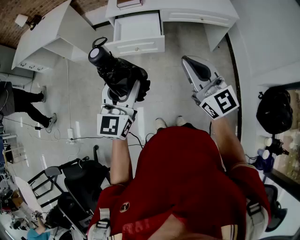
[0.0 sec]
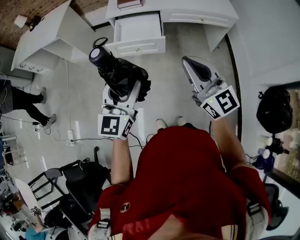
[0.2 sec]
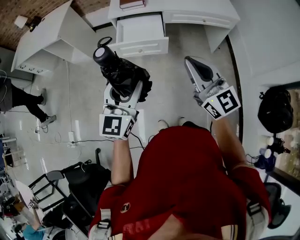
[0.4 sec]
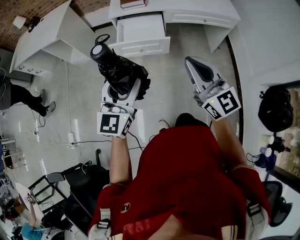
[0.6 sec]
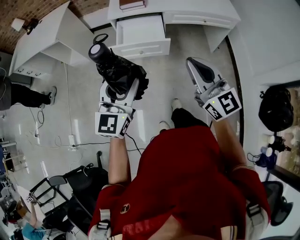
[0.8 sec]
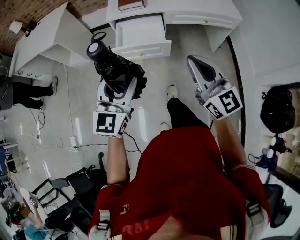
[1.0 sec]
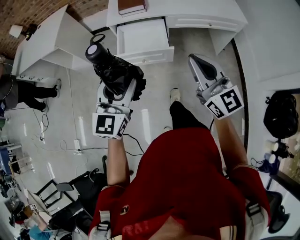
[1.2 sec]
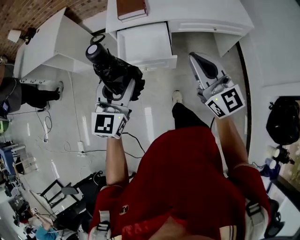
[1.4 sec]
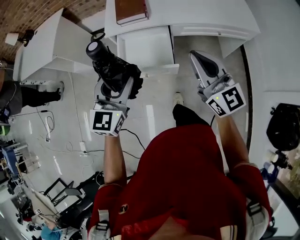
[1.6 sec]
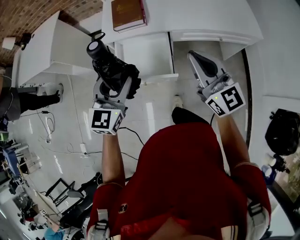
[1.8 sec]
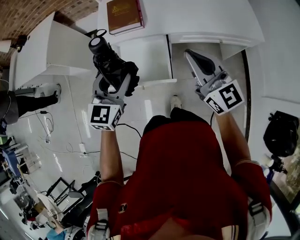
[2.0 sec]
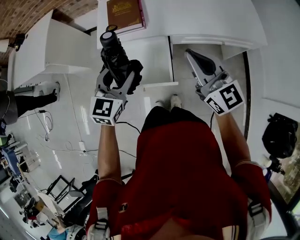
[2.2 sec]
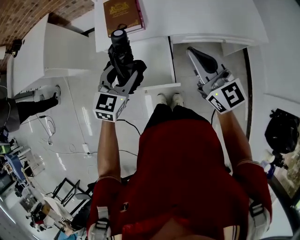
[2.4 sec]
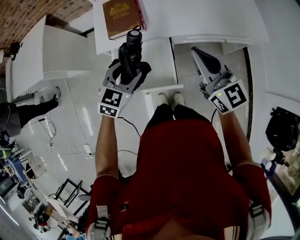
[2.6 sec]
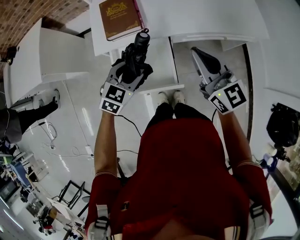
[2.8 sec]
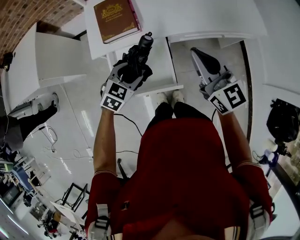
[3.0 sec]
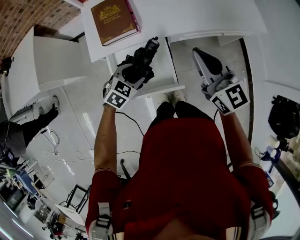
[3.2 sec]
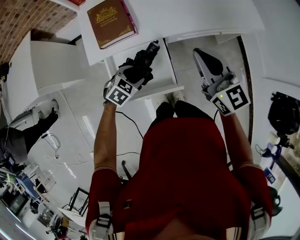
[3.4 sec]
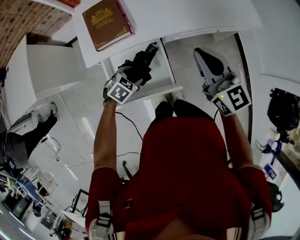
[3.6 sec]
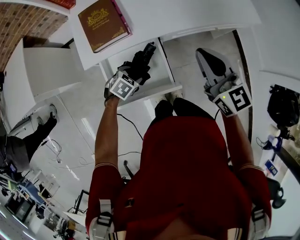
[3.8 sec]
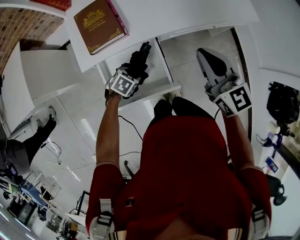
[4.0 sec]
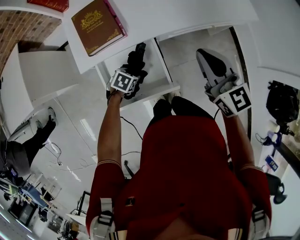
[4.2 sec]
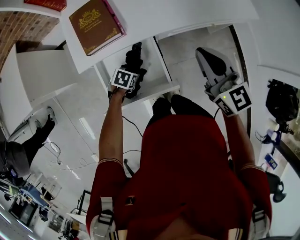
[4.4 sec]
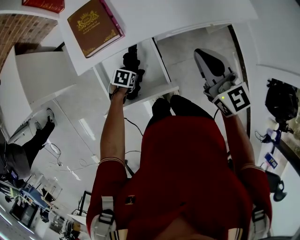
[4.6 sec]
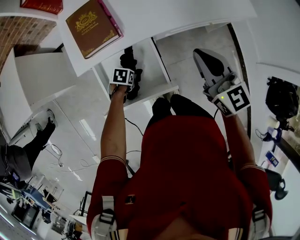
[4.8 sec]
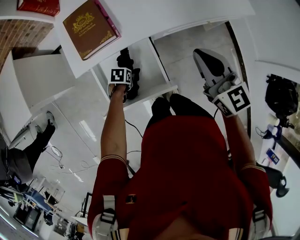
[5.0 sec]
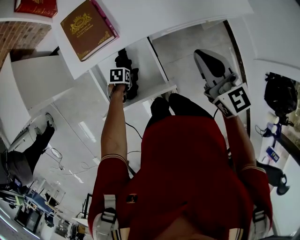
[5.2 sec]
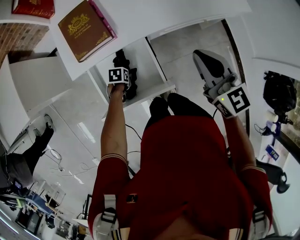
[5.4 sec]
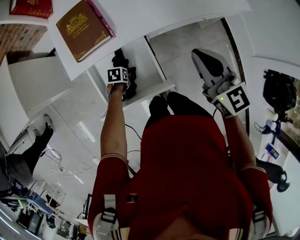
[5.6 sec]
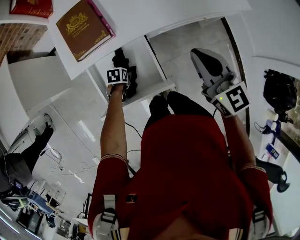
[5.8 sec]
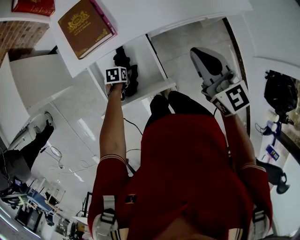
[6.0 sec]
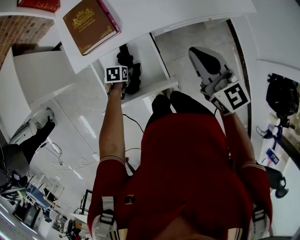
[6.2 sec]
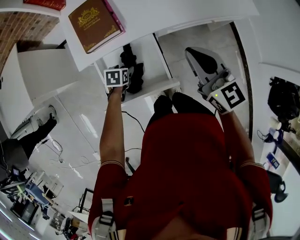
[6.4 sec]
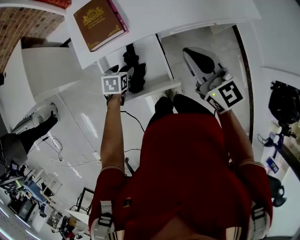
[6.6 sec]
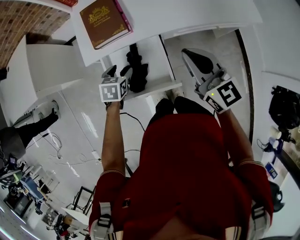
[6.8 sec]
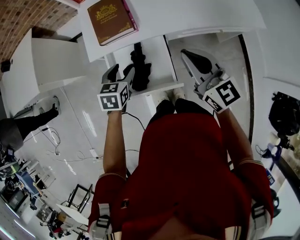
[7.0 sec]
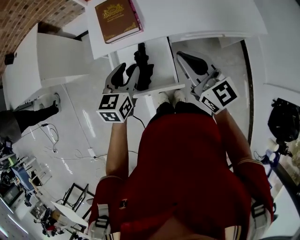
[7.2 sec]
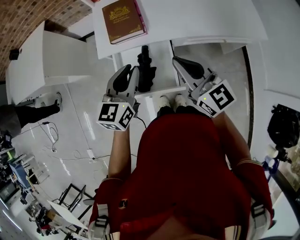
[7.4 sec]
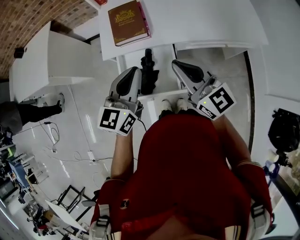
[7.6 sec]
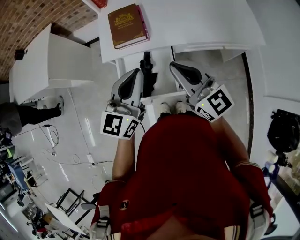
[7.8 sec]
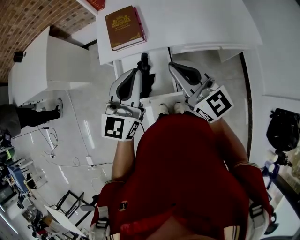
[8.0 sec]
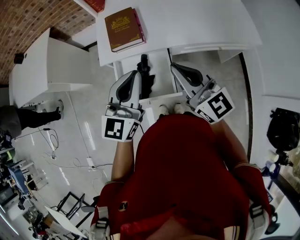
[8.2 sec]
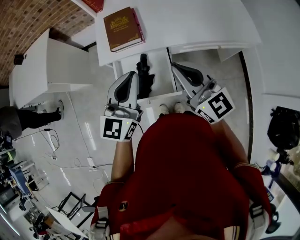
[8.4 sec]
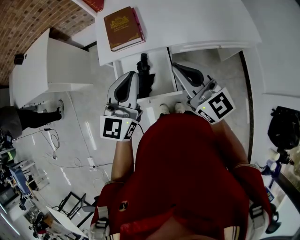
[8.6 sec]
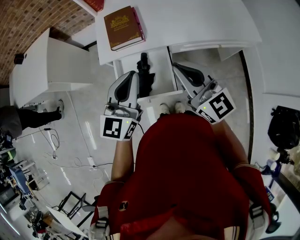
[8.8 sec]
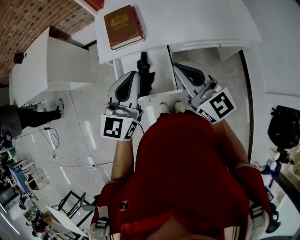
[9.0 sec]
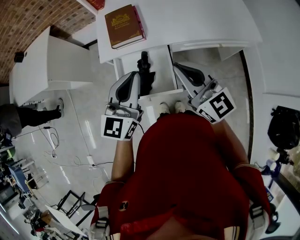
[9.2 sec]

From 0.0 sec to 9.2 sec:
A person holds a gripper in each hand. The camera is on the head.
From 0.0 sec to 1.6 sec: Both grippers move forward, about 30 cm.
From 1.6 sec to 3.0 sec: The left gripper heads downward and forward, covering some 30 cm, and angles its fingers downward, by some 30 degrees; the right gripper shifts some 20 cm forward.
From 3.0 sec to 4.6 sec: The right gripper ends up approximately 5 cm from where it was, while the left gripper goes some 20 cm downward, and rotates some 40 degrees.
From 4.6 sec to 6.2 sec: The grippers move only a little.
From 6.2 sec to 7.6 sec: The left gripper heads upward, covering approximately 40 cm, tips its fingers upward by some 60 degrees, and closes its fingers. The right gripper ends up about 15 cm from where it was, and swivels some 20 degrees.
From 7.6 sec to 9.2 sec: There are only small adjustments of the grippers.

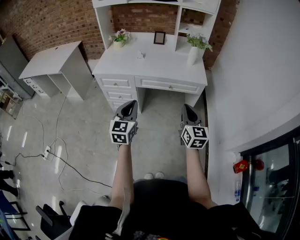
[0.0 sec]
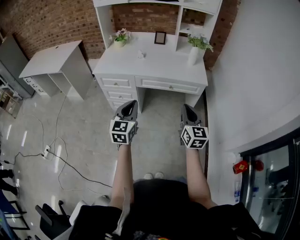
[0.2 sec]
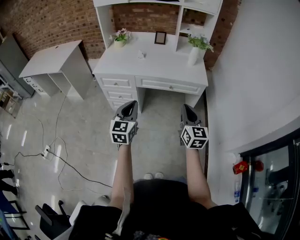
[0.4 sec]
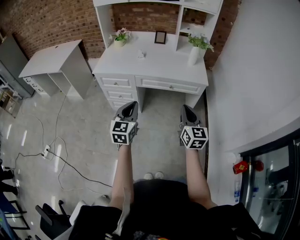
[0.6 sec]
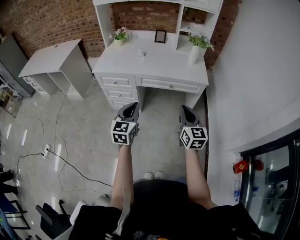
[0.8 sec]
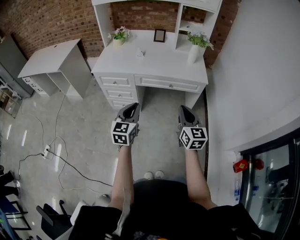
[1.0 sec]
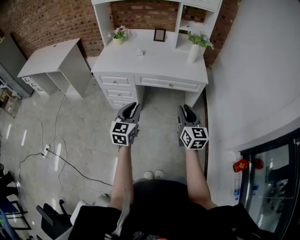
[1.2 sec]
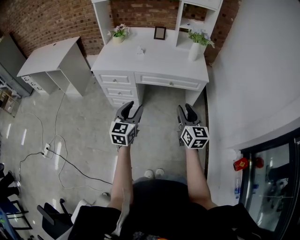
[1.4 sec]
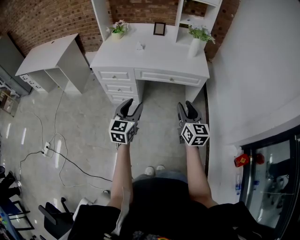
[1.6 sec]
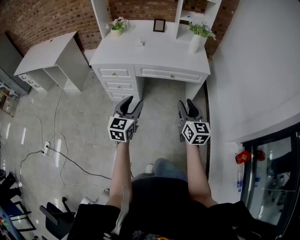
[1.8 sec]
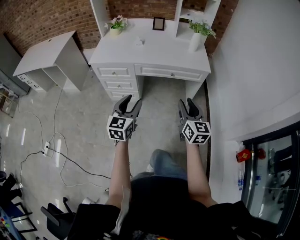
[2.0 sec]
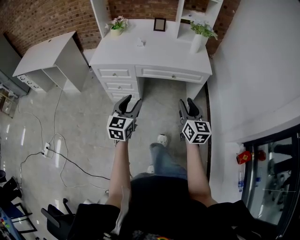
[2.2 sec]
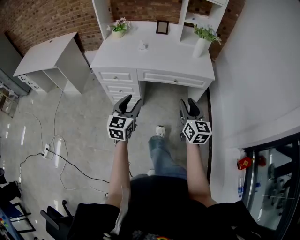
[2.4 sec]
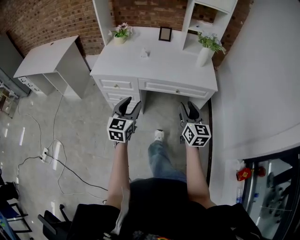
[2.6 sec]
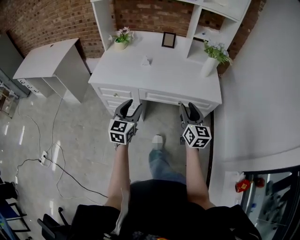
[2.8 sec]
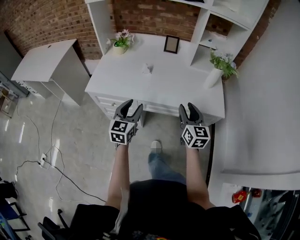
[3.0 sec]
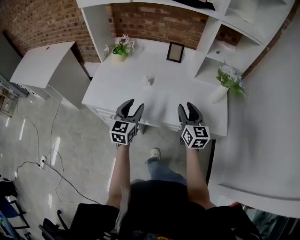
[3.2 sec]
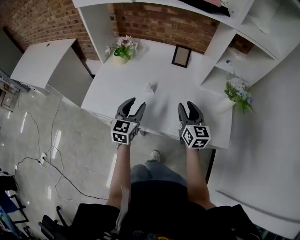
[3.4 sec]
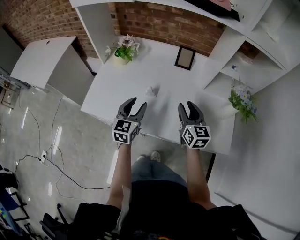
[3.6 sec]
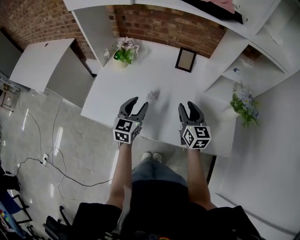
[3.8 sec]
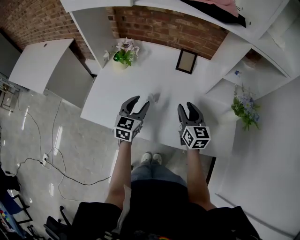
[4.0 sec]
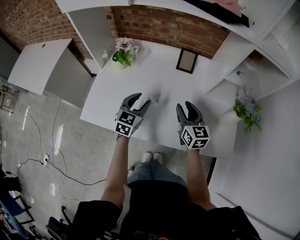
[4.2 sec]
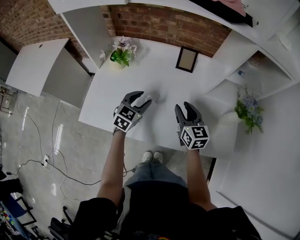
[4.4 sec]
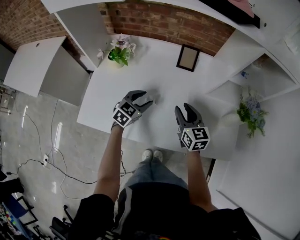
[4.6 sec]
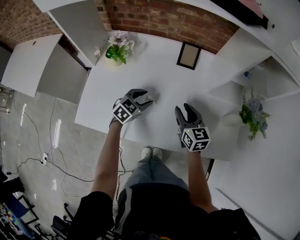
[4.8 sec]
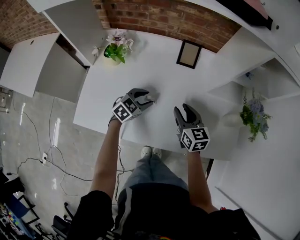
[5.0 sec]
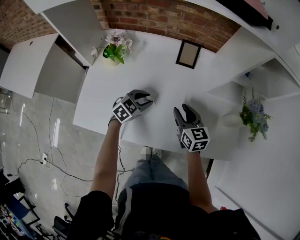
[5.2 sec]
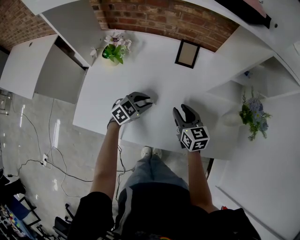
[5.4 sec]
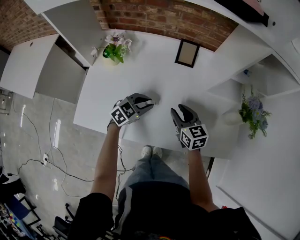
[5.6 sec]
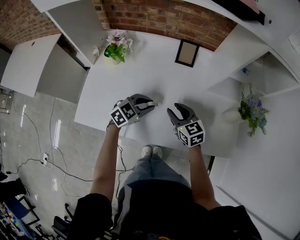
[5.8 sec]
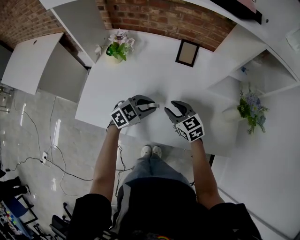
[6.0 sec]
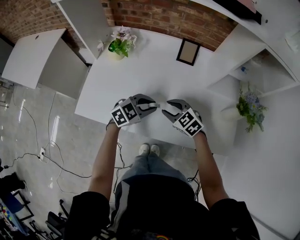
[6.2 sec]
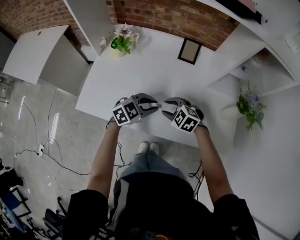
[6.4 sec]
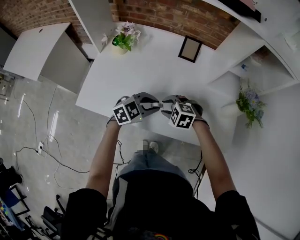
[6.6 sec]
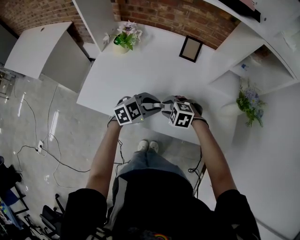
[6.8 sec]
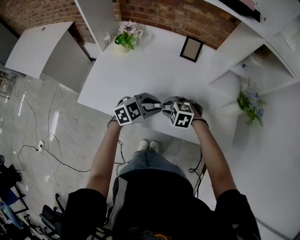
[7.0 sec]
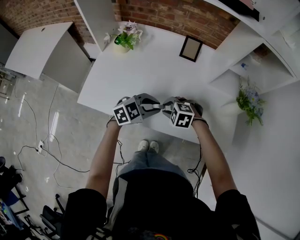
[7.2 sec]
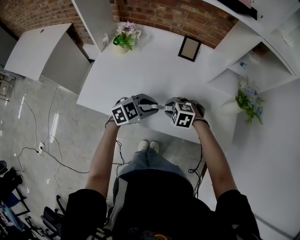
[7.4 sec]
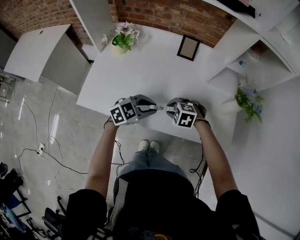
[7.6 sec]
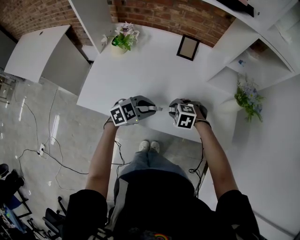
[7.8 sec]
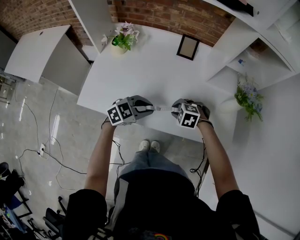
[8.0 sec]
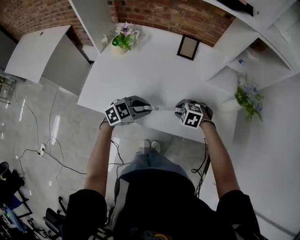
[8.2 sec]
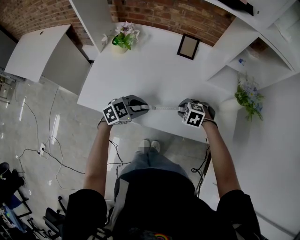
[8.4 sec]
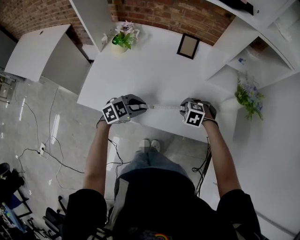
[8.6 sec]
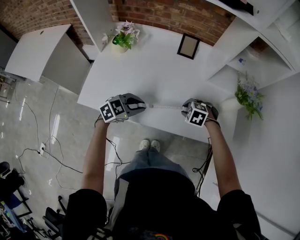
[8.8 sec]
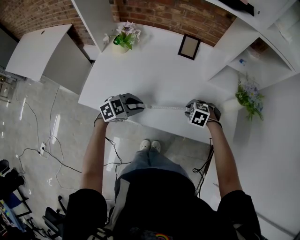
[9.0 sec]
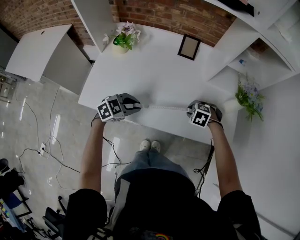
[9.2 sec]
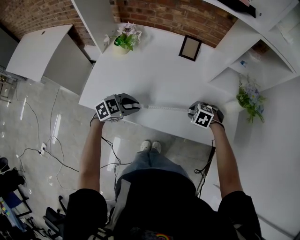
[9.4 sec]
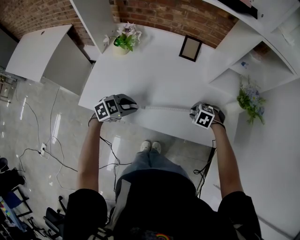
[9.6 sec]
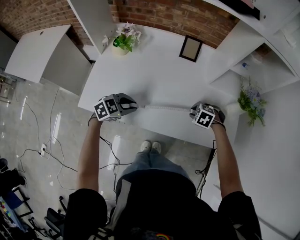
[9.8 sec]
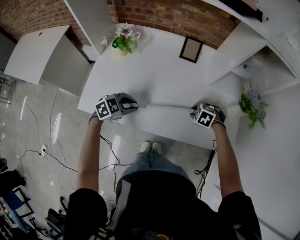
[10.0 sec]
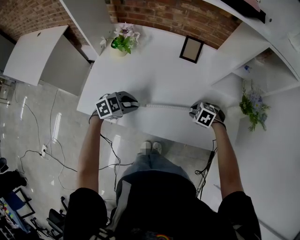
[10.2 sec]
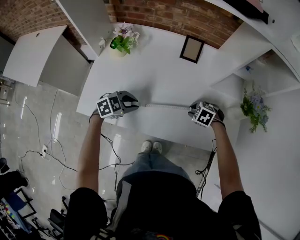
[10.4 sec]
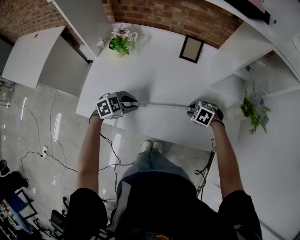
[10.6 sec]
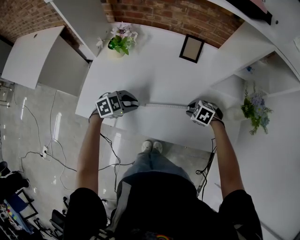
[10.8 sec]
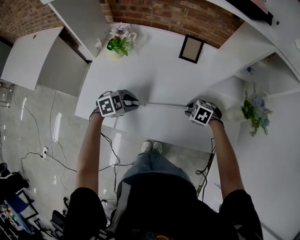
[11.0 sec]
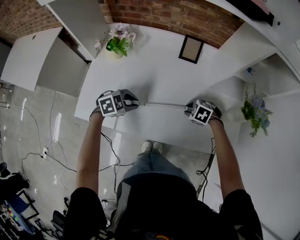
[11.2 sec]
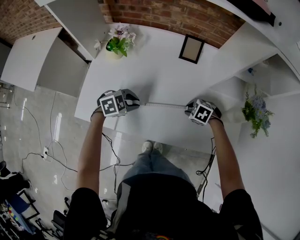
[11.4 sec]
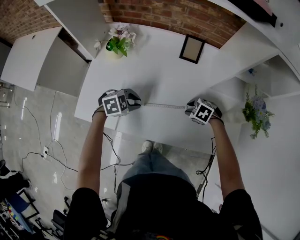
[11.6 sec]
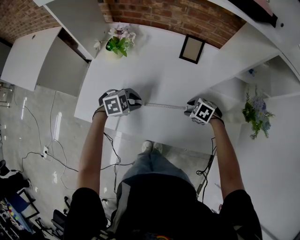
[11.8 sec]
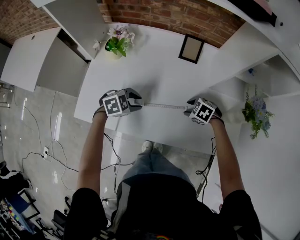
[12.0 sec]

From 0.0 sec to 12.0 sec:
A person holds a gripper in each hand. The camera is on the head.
From 0.0 sec to 1.6 sec: The right gripper opens. Meanwhile the left gripper opens up.
From 1.6 sec to 3.0 sec: Both grippers move forward, some 30 cm.
From 3.0 sec to 4.4 sec: Both grippers travel together forward, some 30 cm. The left gripper turns by approximately 20 degrees.
From 4.4 sec to 6.0 sec: The right gripper shifts some 5 cm downward, and turns by approximately 30 degrees. The left gripper goes about 5 cm to the right, and swivels some 30 degrees.
From 6.0 sec to 7.6 sec: The left gripper ends up approximately 10 cm from where it was. Meanwhile the right gripper ends up about 10 cm from where it was, and tips its fingers downward by roughly 40 degrees.
From 7.6 sec to 9.0 sec: The left gripper moves roughly 5 cm, while the right gripper changes place by roughly 10 cm.
From 9.0 sec to 10.4 sec: The left gripper shifts by approximately 10 cm, while the right gripper moves roughly 5 cm.
From 10.4 sec to 12.0 sec: The right gripper opens up.

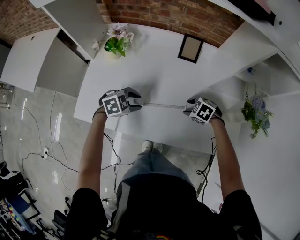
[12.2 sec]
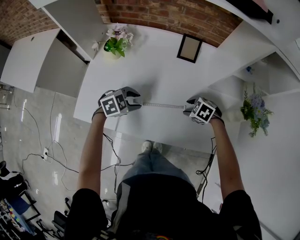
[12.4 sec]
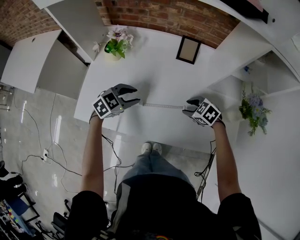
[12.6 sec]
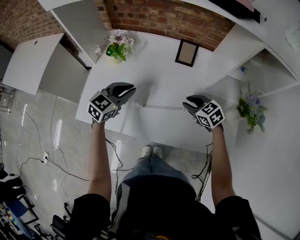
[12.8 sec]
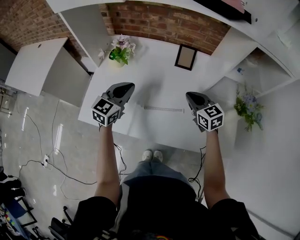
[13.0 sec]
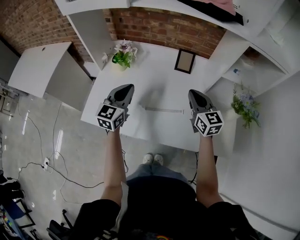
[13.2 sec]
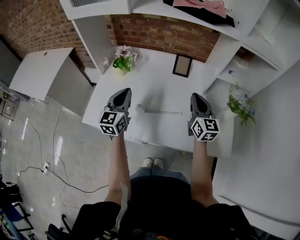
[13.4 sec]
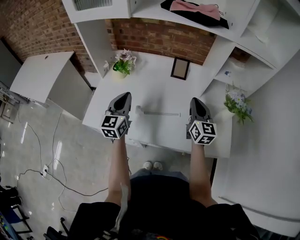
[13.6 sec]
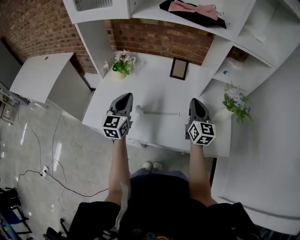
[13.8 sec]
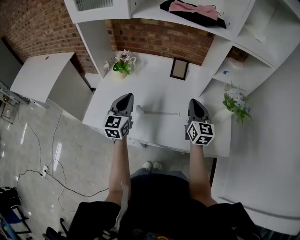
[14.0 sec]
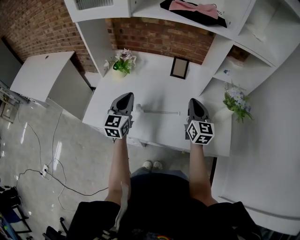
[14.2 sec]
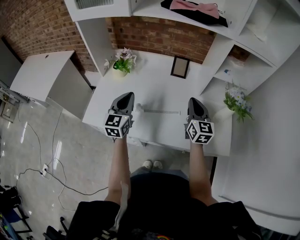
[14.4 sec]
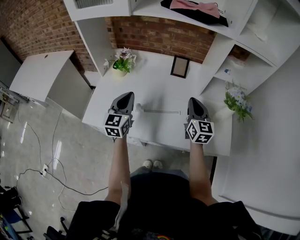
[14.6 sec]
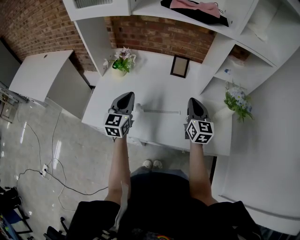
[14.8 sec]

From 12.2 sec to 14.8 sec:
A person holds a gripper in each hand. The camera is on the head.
From 12.2 sec to 13.4 sec: Both grippers move upward, some 25 cm. The right gripper tips its fingers upward by approximately 70 degrees, and closes up; the left gripper tips its fingers upward by some 50 degrees, and closes.
From 13.4 sec to 14.8 sec: The grippers stay close to where they were, moving slightly.
